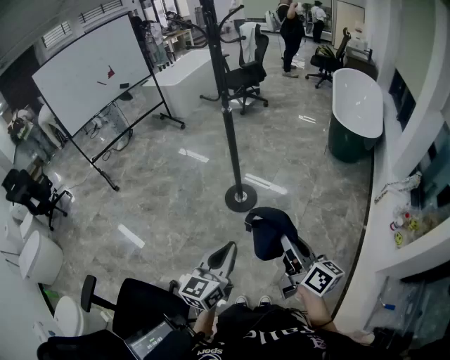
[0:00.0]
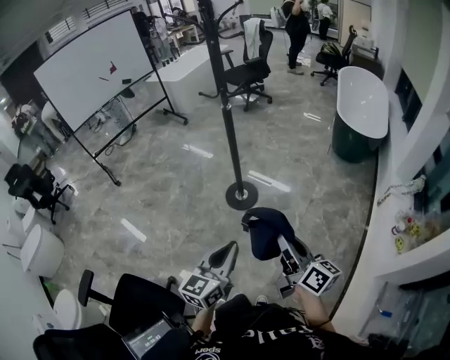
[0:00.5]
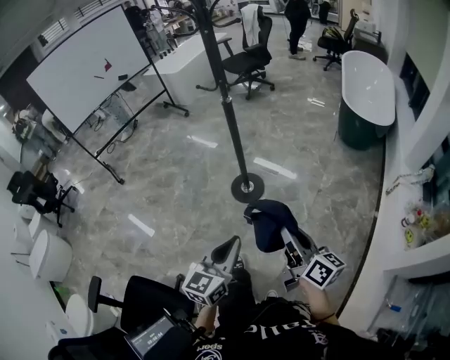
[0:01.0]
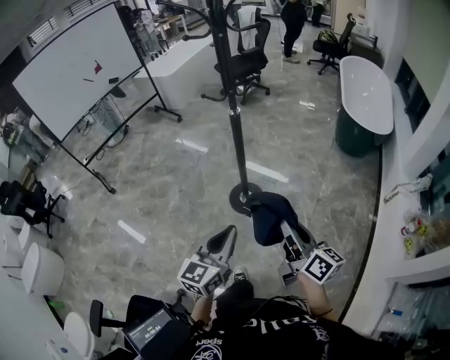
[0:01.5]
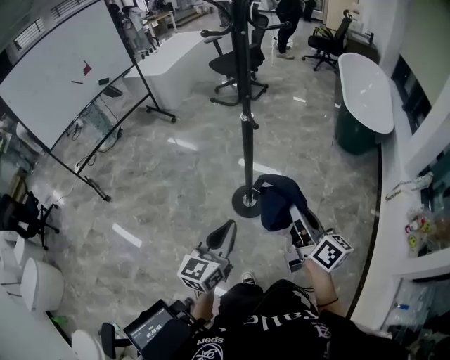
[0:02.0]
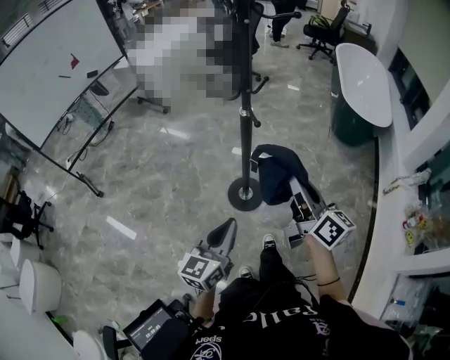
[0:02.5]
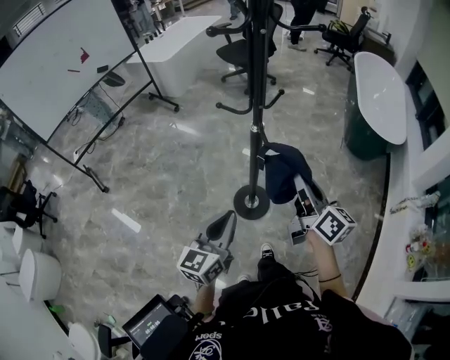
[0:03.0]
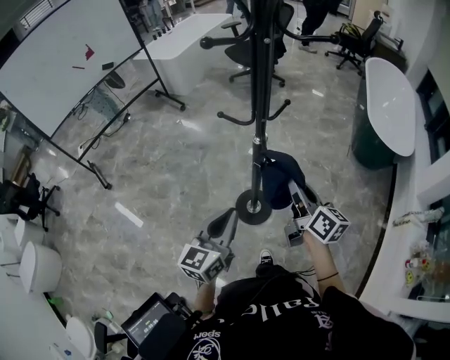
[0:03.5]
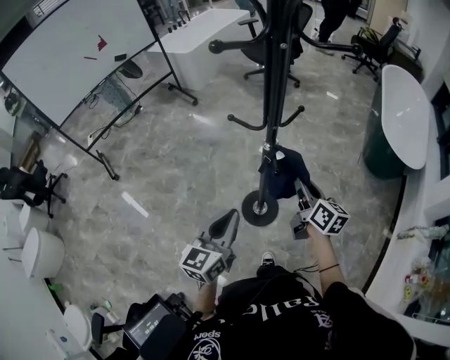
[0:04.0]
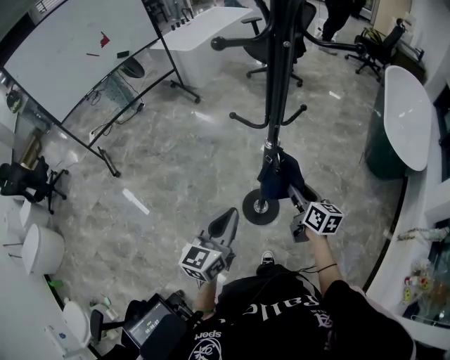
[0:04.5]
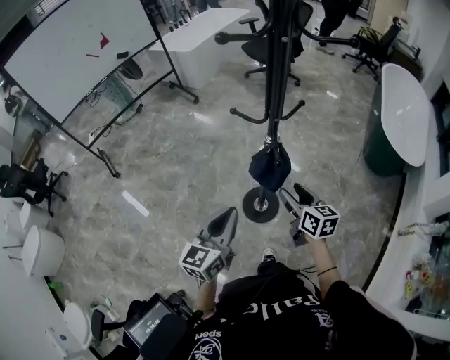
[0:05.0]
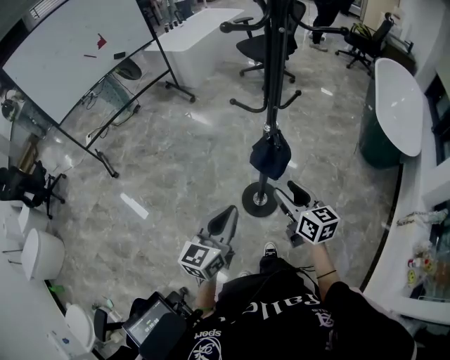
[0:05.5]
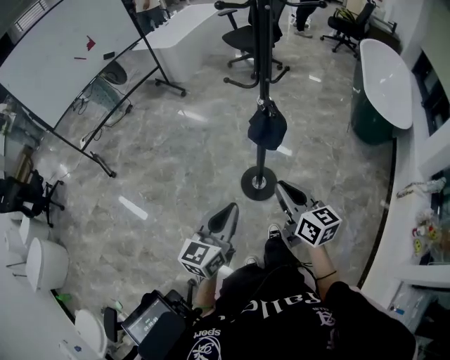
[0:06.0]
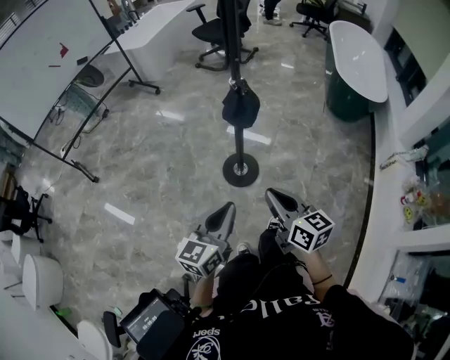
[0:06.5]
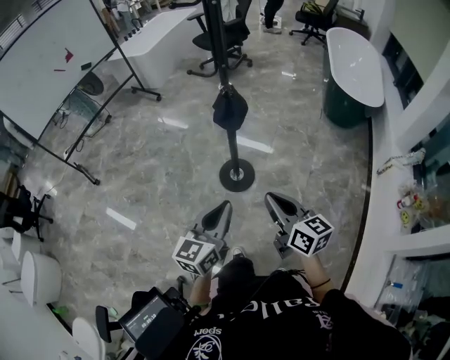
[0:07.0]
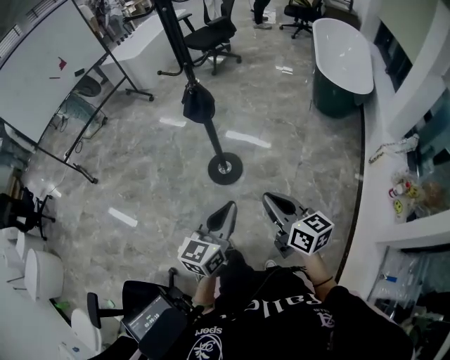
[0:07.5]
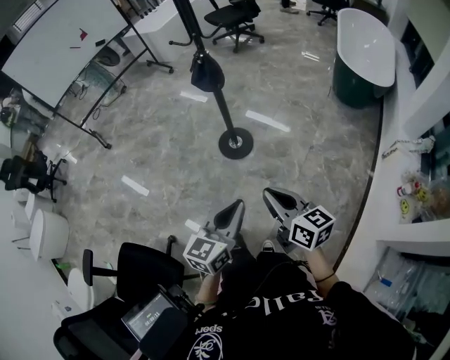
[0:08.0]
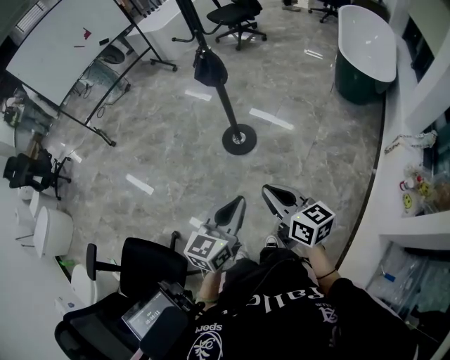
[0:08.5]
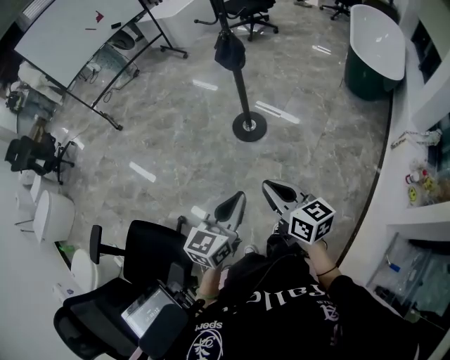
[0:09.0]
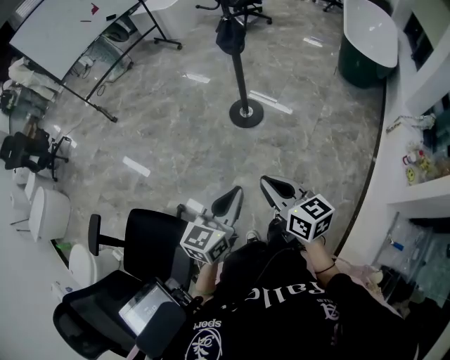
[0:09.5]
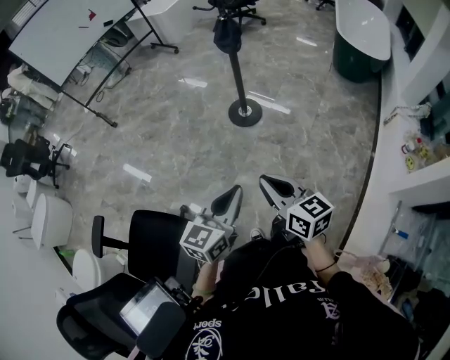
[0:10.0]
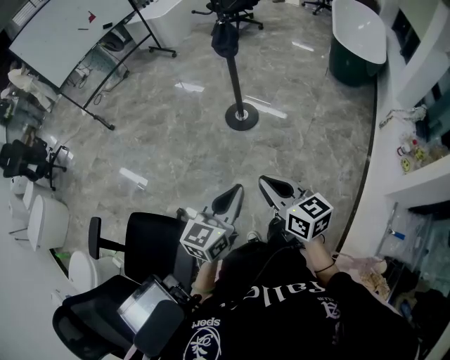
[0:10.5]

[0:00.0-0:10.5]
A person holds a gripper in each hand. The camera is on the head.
0:00.0 to 0:02.0: Both grippers move forward and to the left, roughly 35 cm.
0:02.0 to 0:04.0: The left gripper travels forward by about 20 cm. The right gripper shifts about 30 cm forward.
0:04.0 to 0:06.5: The grippers both shift backward by some 30 cm. The right gripper opens and closes again.
0:06.5 to 0:08.5: The right gripper travels backward and to the right by about 30 cm. The left gripper is displaced to the right and backward by roughly 35 cm.
0:08.5 to 0:10.5: Both grippers travel together backward and to the left, approximately 20 cm.

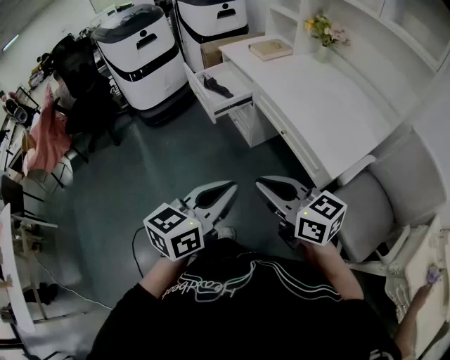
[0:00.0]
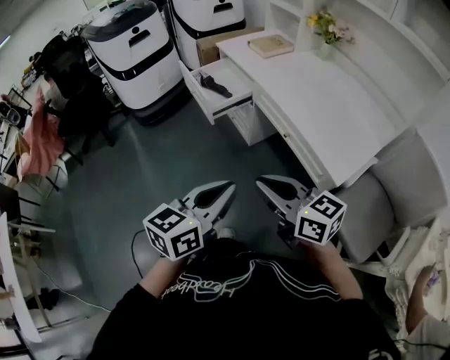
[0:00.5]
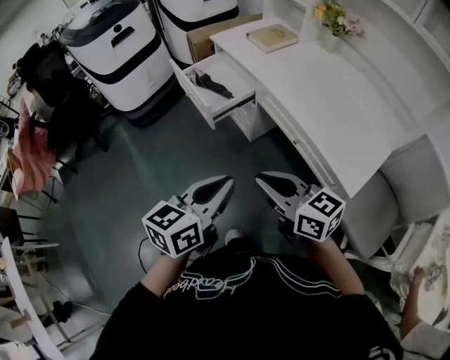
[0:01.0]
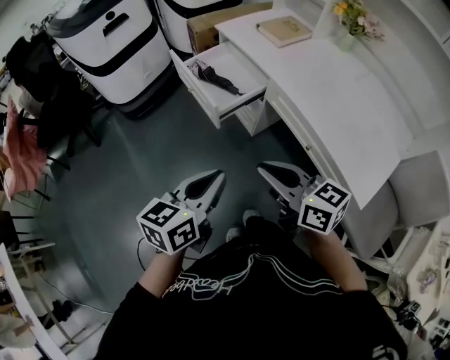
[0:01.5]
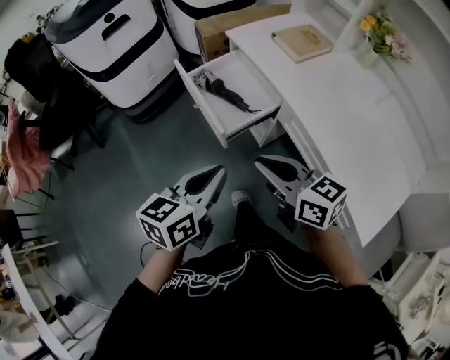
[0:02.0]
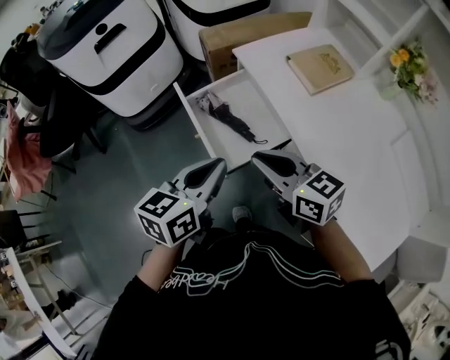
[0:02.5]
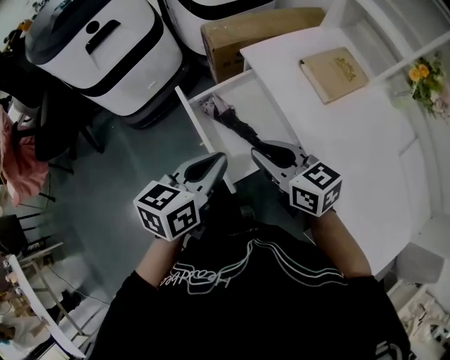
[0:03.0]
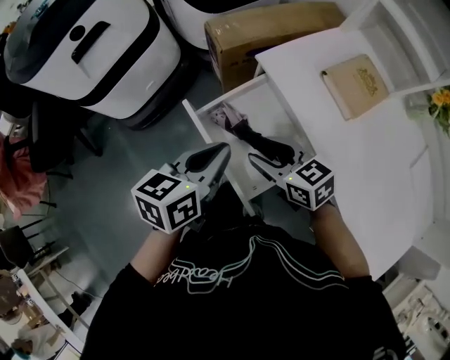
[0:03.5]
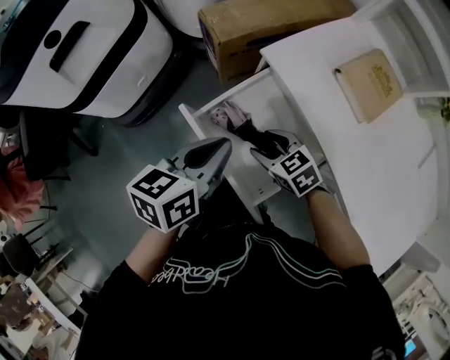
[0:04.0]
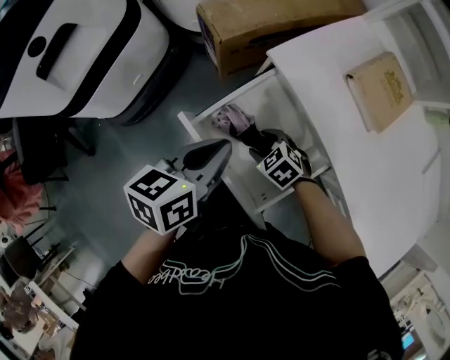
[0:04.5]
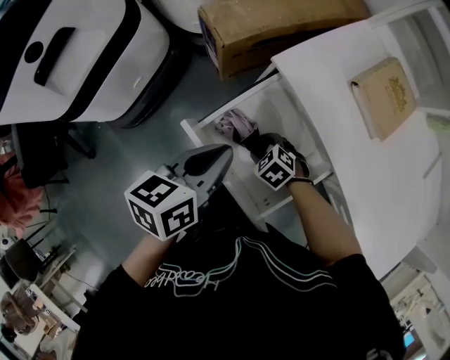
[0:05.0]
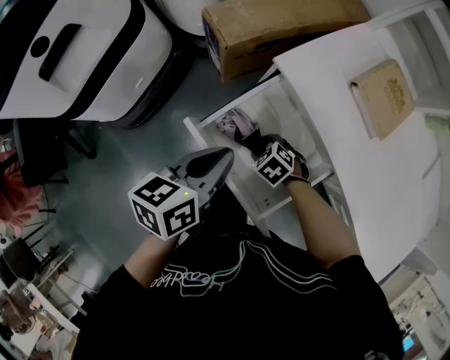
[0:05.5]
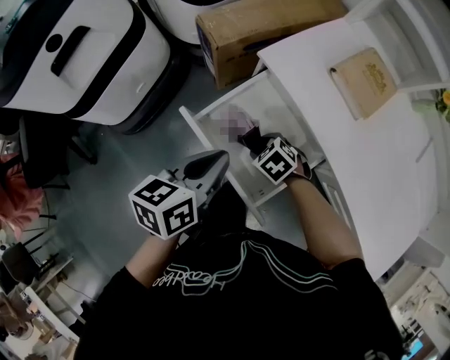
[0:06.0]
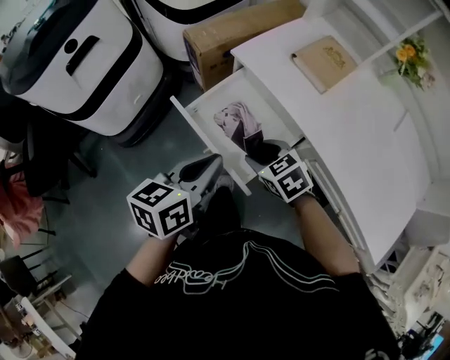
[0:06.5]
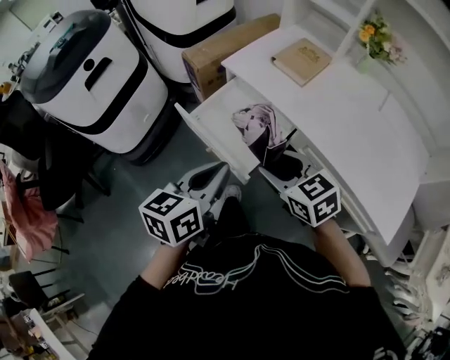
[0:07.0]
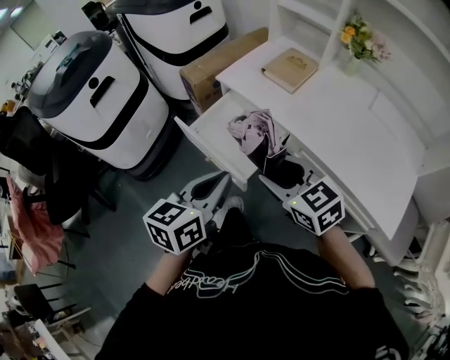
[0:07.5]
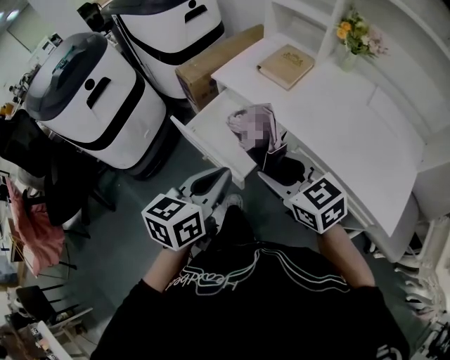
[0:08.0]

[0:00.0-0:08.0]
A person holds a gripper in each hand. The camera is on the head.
0:00.0 to 0:02.0: The two grippers travel together, forward, roughly 50 cm.
0:02.0 to 0:04.0: The pair of grippers is taken forward, about 40 cm. The right gripper is displaced downward by about 25 cm, tips its fingers downward by approximately 40 degrees, and opens.
0:04.0 to 0:06.0: The right gripper moves downward, approximately 5 cm, and turns by some 20 degrees.
0:06.0 to 0:08.0: The left gripper is displaced backward and upward by roughly 30 cm. Meanwhile the right gripper is displaced upward and backward by some 40 cm, and angles its fingers upward, by about 40 degrees.

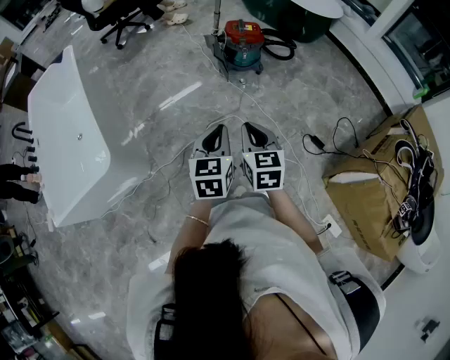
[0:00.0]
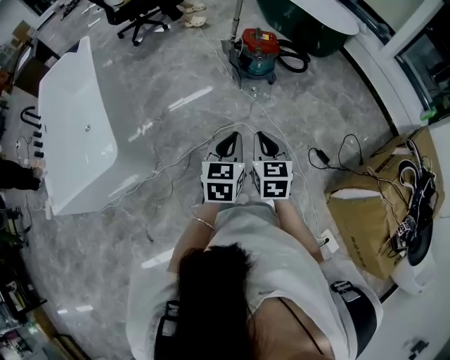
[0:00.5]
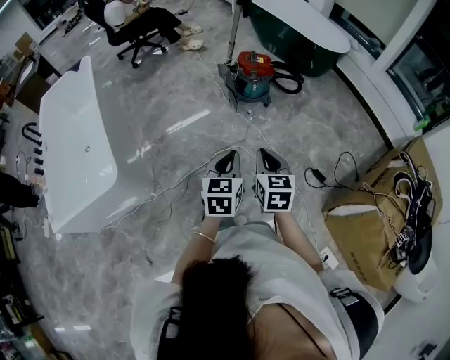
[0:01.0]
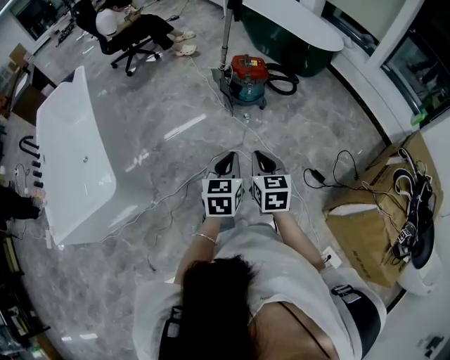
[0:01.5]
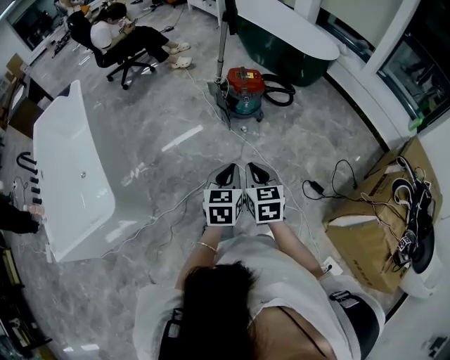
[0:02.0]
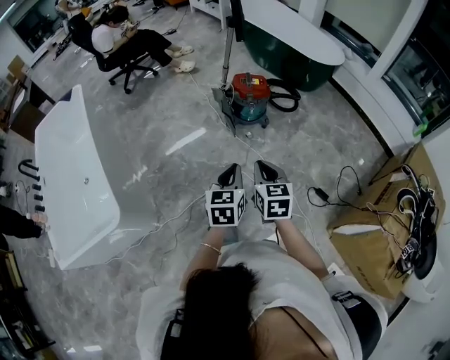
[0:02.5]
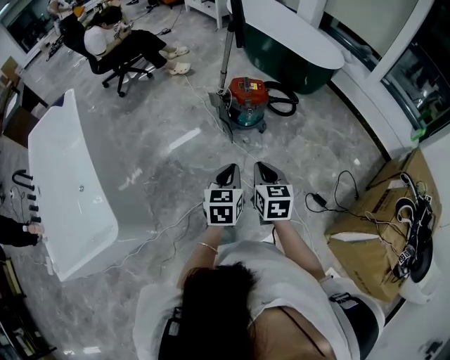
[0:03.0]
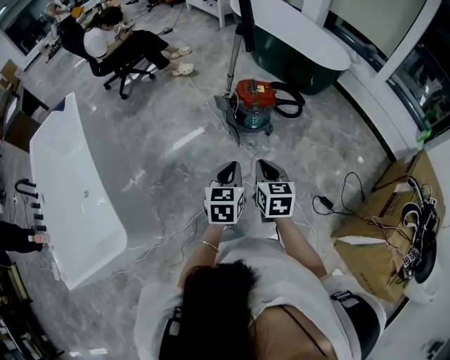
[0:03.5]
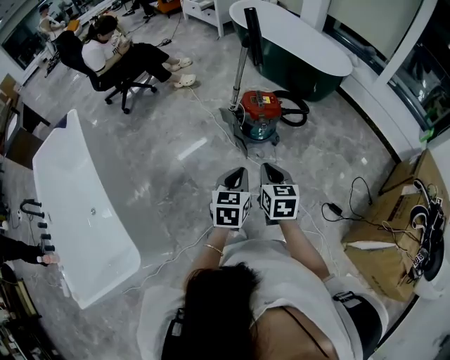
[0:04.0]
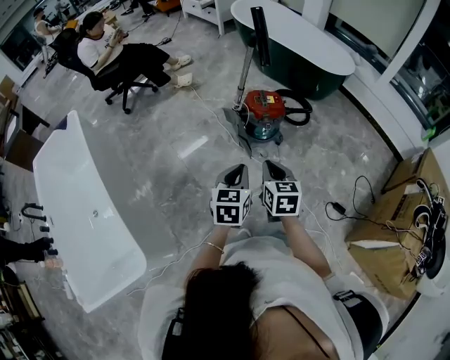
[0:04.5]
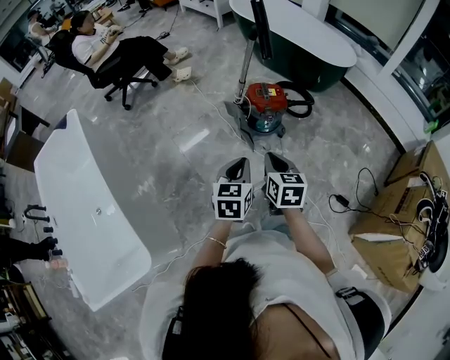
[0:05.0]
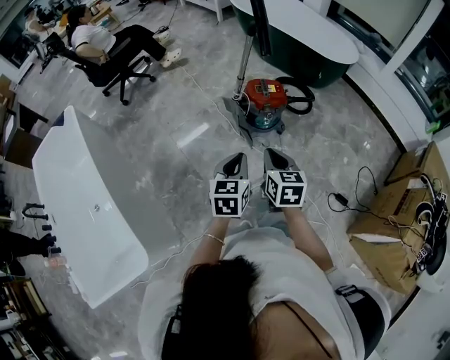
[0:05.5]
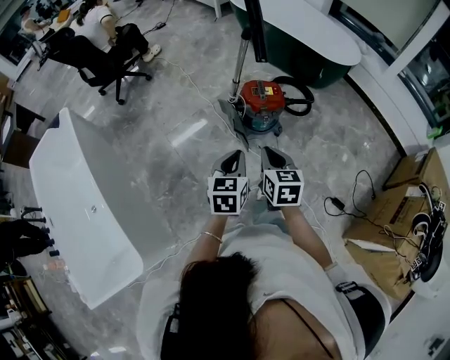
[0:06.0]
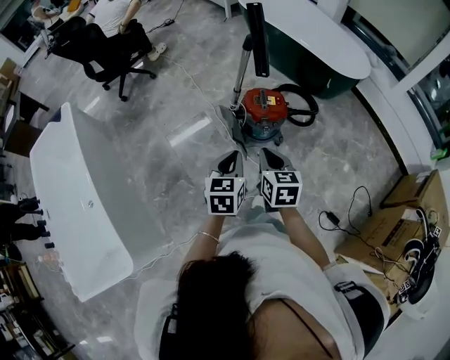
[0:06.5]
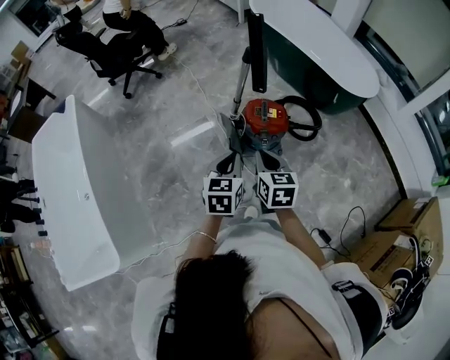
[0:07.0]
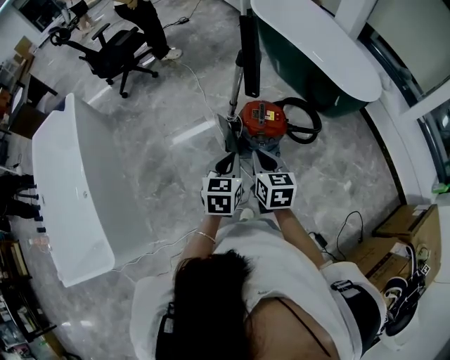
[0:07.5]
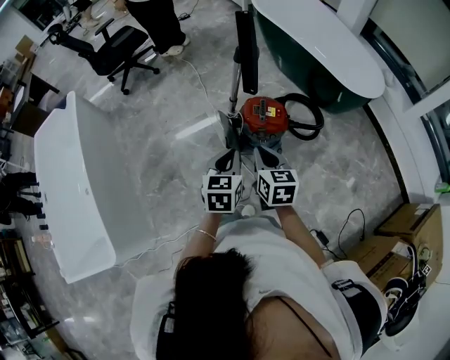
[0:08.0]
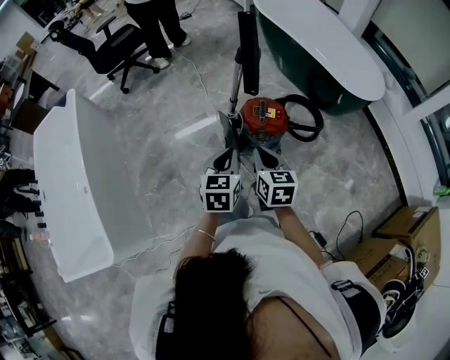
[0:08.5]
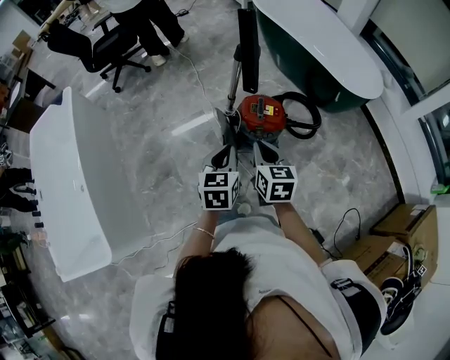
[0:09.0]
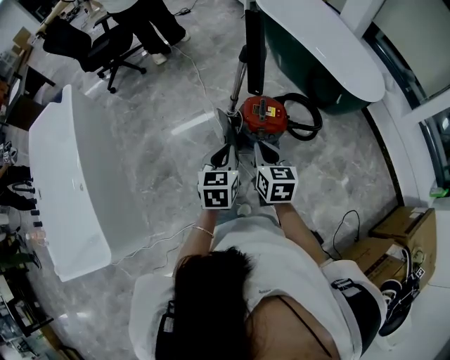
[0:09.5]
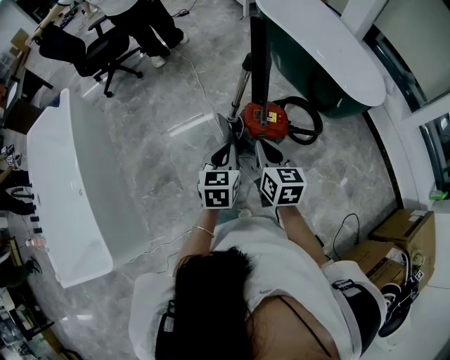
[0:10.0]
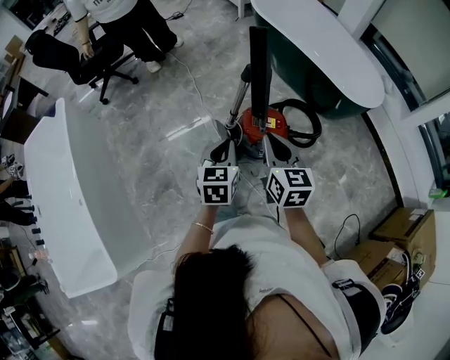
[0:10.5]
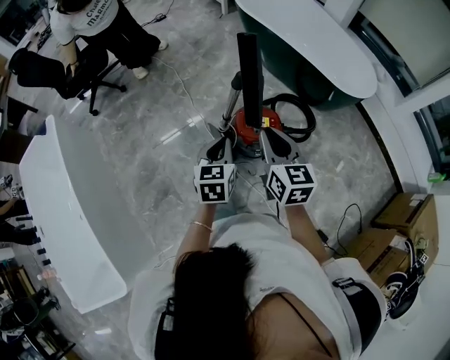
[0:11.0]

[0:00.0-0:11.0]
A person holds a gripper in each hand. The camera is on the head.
0:00.0 to 0:02.0: Both grippers travel together forward, approximately 5 cm.
0:02.0 to 0:03.5: The right gripper is displaced forward by some 20 cm. Meanwhile the left gripper moves forward and to the left, approximately 20 cm.
0:03.5 to 0:05.5: The two grippers go some 10 cm forward and to the left.
0:05.5 to 0:07.5: The two grippers go roughly 20 cm forward and to the right.
0:07.5 to 0:09.0: There are only small adjustments of the grippers.
0:09.0 to 0:11.0: The right gripper shifts about 15 cm forward and upward. Meanwhile the left gripper shifts some 15 cm forward.
